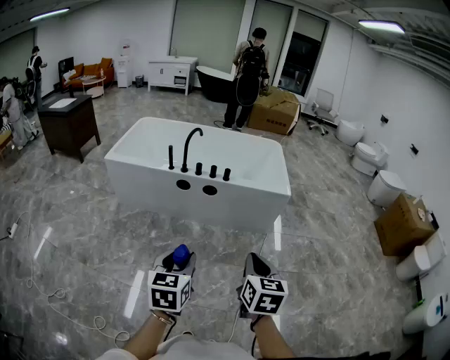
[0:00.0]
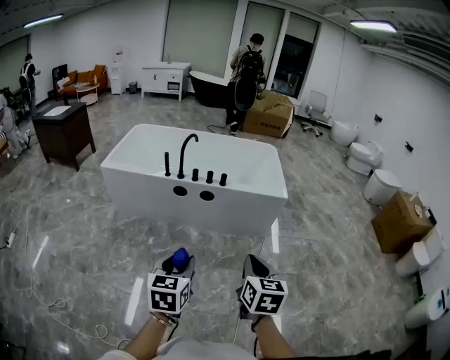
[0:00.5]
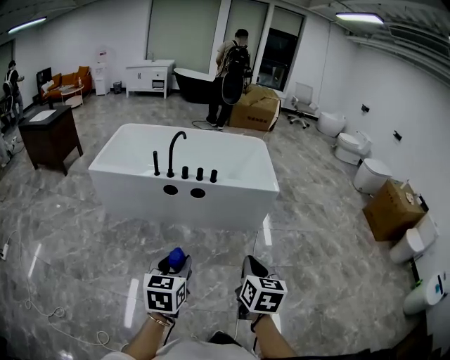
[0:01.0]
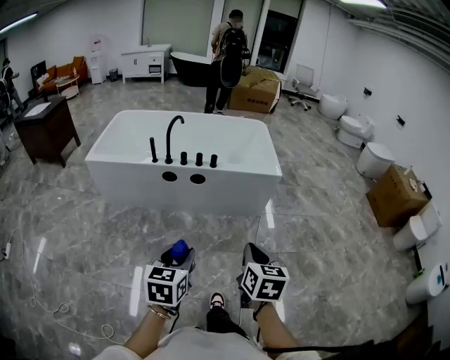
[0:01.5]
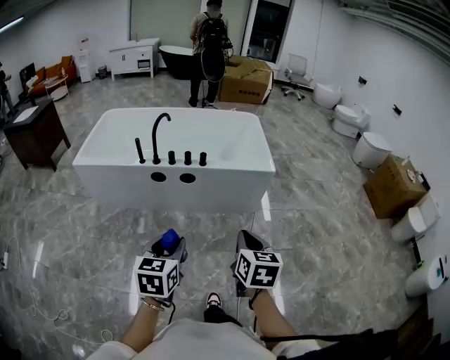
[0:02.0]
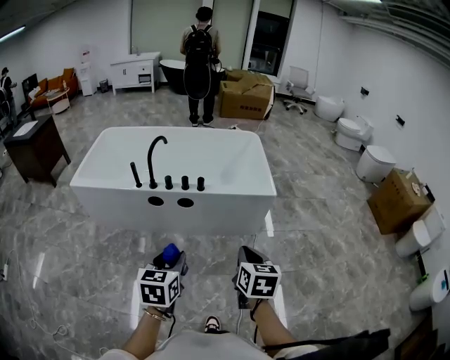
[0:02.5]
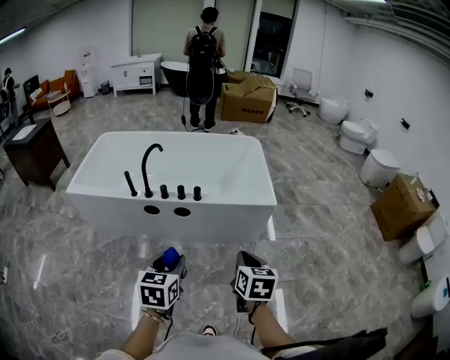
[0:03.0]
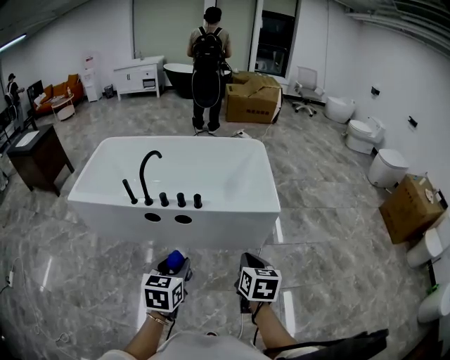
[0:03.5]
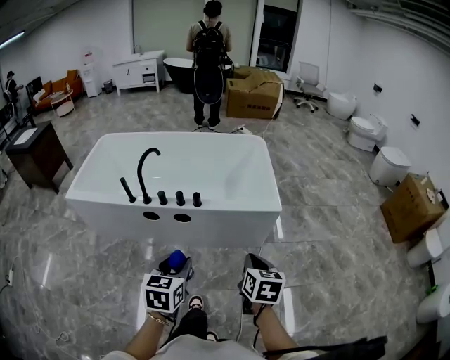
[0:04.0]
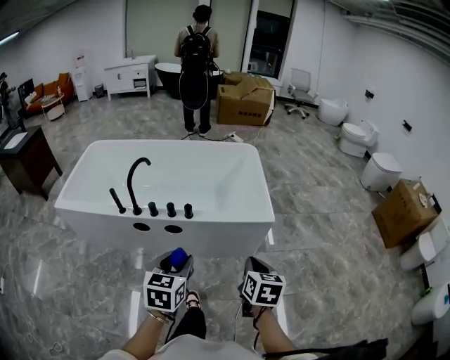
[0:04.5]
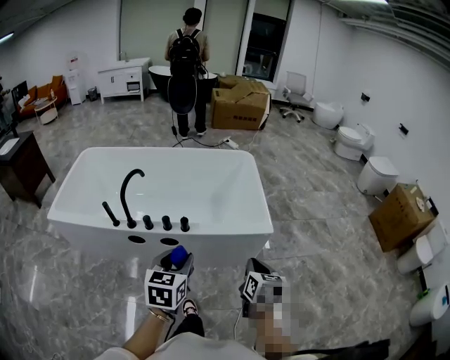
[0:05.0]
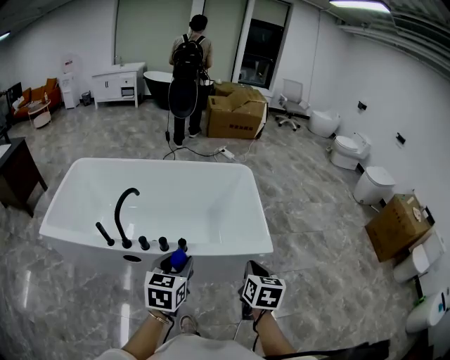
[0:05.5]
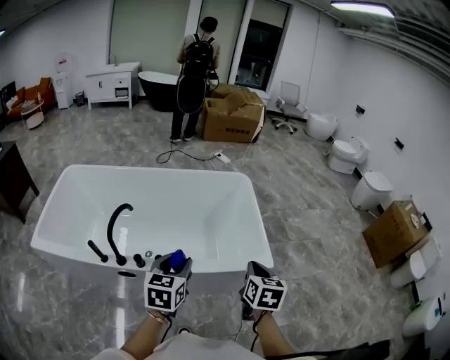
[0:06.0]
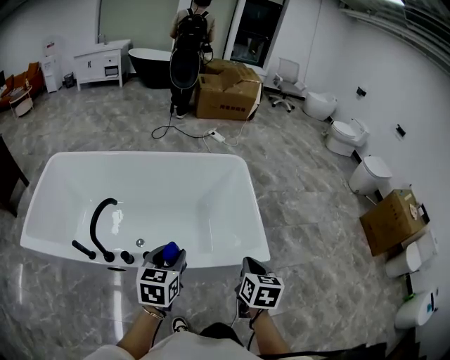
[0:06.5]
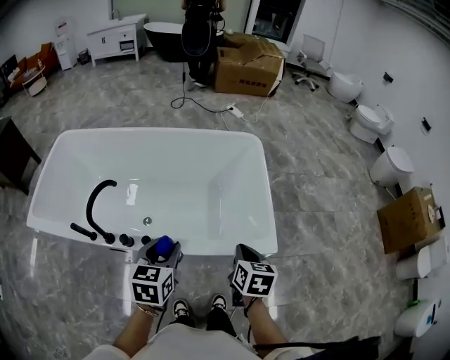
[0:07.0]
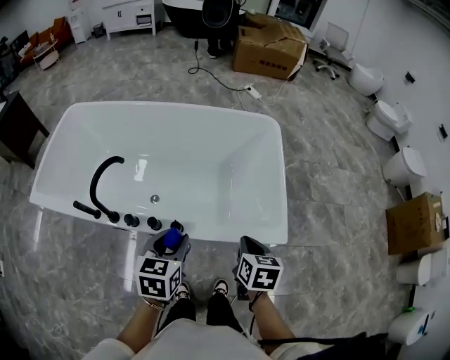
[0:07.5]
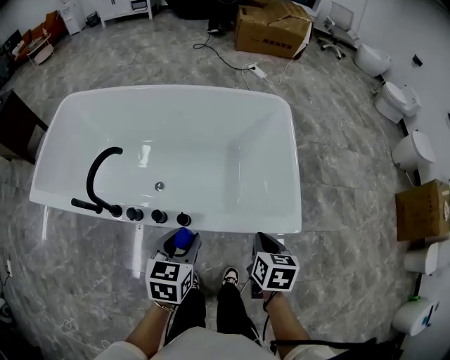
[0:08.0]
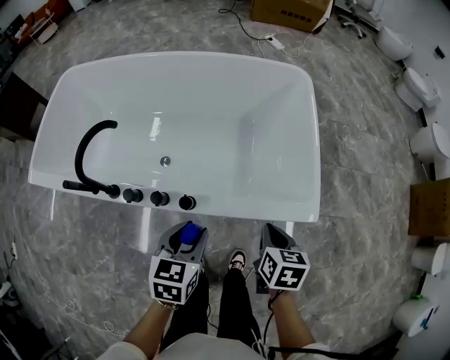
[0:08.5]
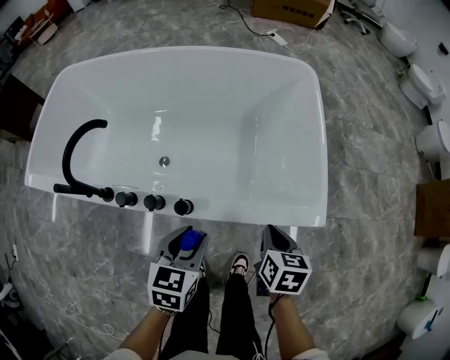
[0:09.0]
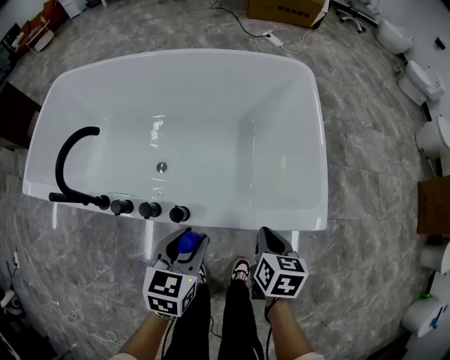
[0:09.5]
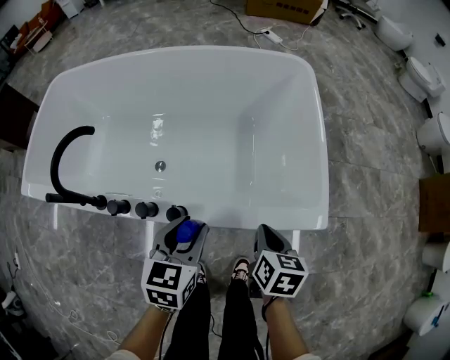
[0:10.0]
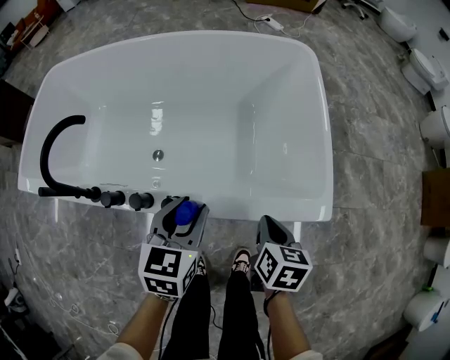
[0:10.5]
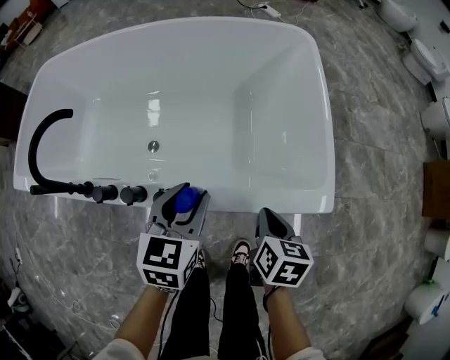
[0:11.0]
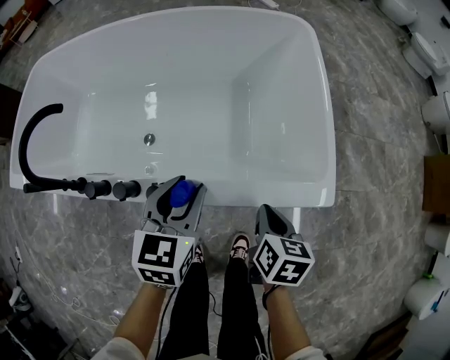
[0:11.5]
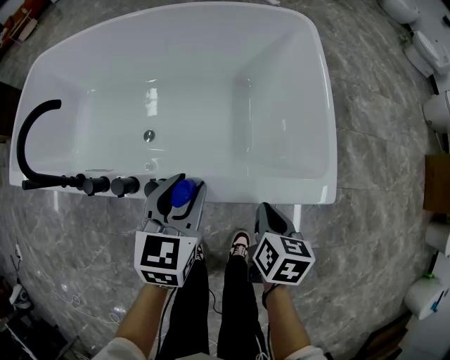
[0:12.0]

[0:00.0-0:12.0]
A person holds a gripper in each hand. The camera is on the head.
0:00.0 to 0:02.0: Both grippers move forward, approximately 10 cm.
0:02.0 to 0:04.0: The left gripper is displaced forward by some 20 cm, while the right gripper shifts about 20 cm forward and to the right.
0:04.0 to 0:06.0: The two grippers go roughly 25 cm forward.
0:06.0 to 0:08.0: The two grippers go about 10 cm downward. The right gripper swivels about 20 degrees.
0:08.0 to 0:10.0: Both grippers move downward, roughly 10 cm.
0:10.0 to 0:12.0: The grippers stay close to where they were, moving slightly.

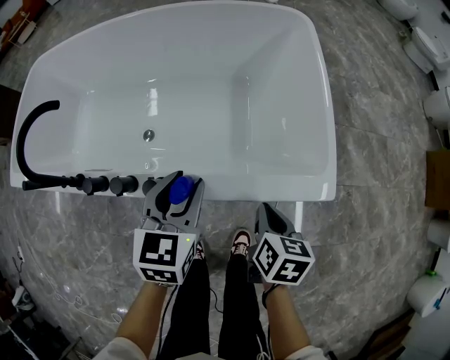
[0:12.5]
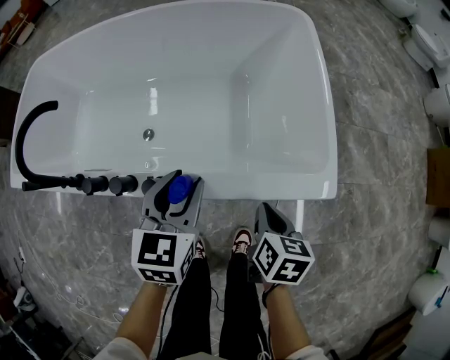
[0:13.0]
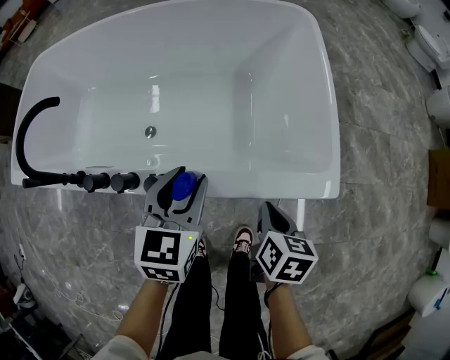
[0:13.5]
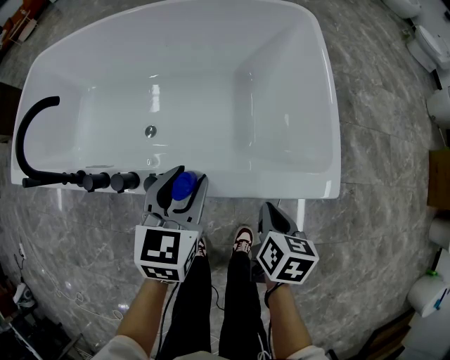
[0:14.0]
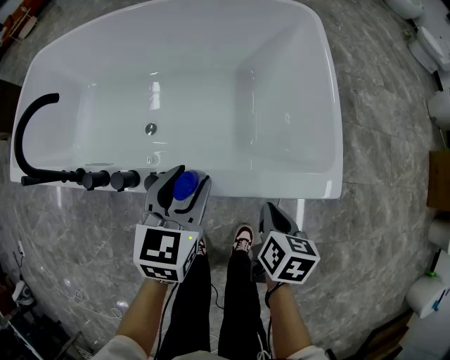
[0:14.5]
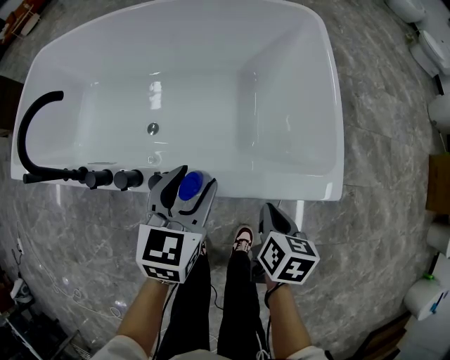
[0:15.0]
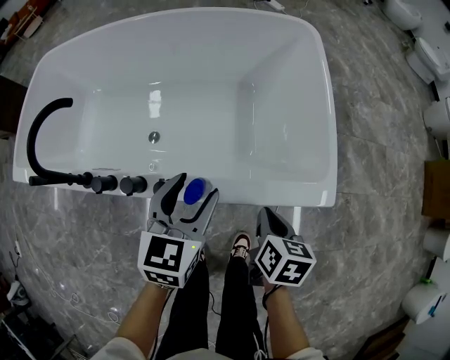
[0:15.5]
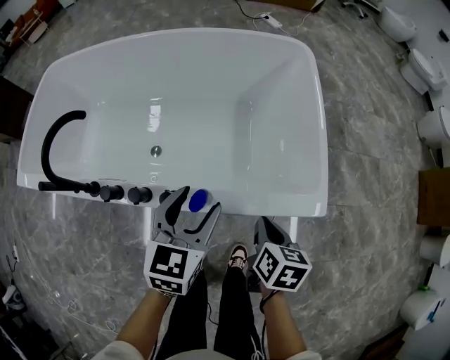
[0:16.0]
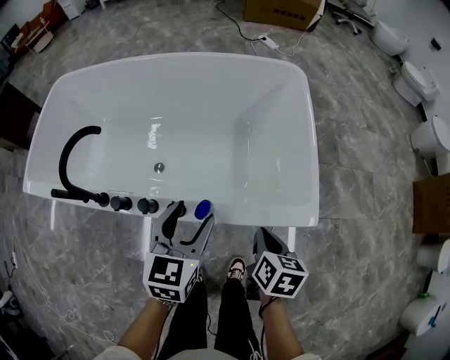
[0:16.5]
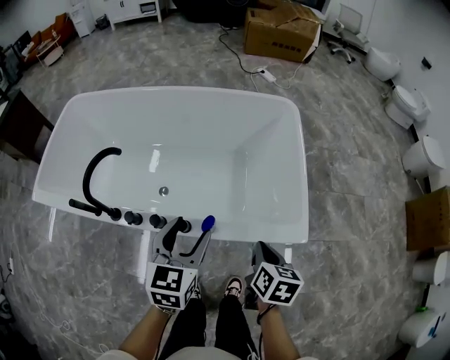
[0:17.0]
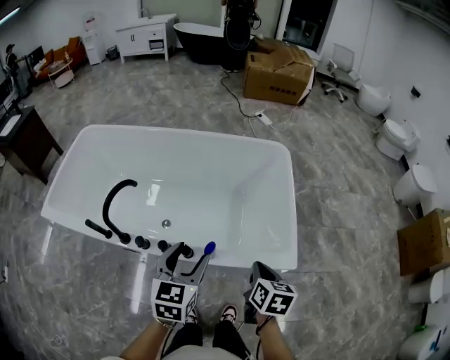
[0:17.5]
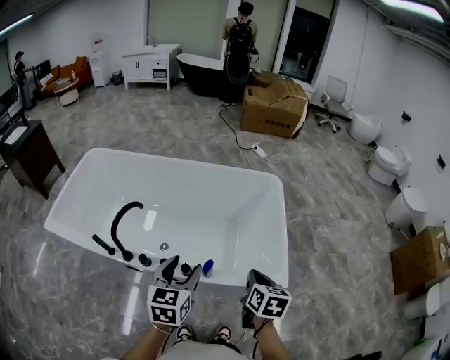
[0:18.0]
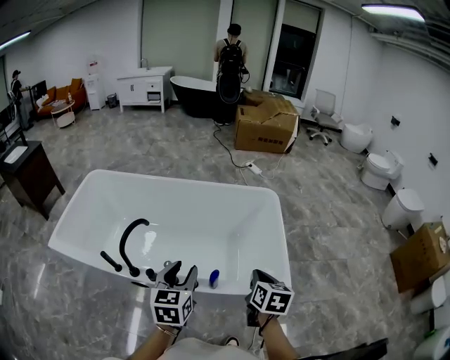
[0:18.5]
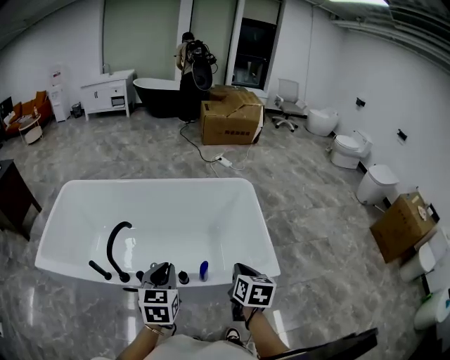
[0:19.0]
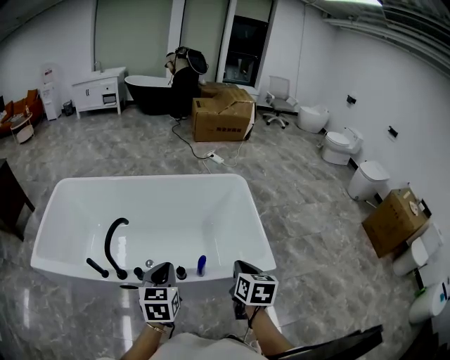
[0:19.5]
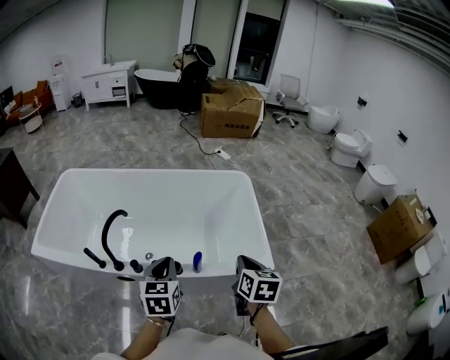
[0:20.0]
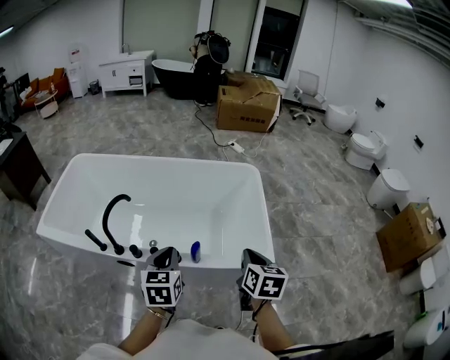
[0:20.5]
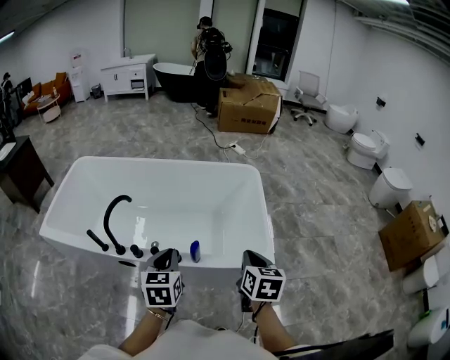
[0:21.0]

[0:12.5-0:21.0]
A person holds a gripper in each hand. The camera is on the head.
0:12.5 to 0:14.5: Both grippers stay put.
0:14.5 to 0:16.5: The grippers both shift upward by some 10 cm.
0:16.5 to 0:19.0: The right gripper travels upward by approximately 20 cm; the left gripper travels upward and to the left by roughly 15 cm, and closes up.
0:19.0 to 0:21.0: The right gripper is displaced to the right by approximately 5 cm. The left gripper ends up approximately 5 cm from where it was.

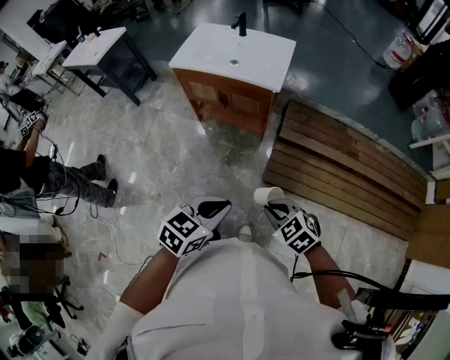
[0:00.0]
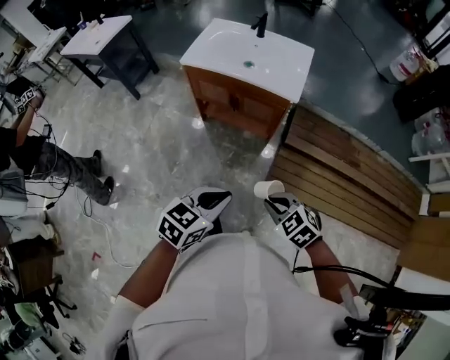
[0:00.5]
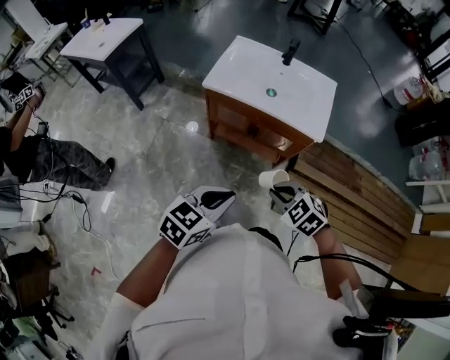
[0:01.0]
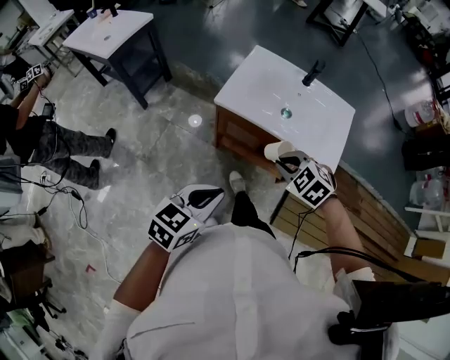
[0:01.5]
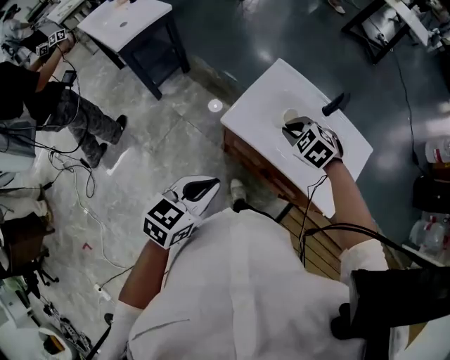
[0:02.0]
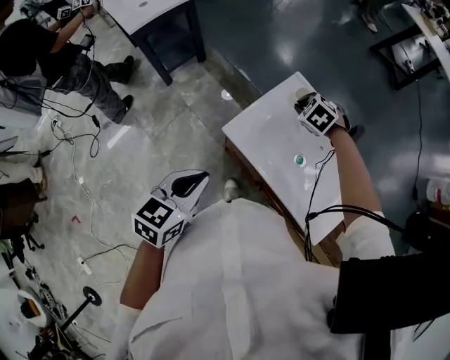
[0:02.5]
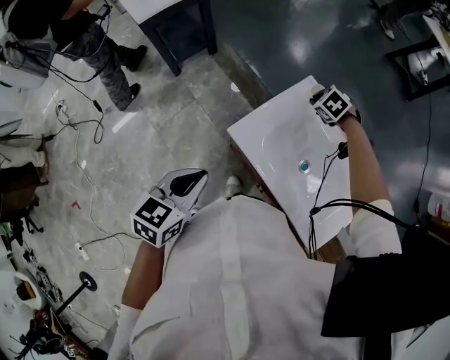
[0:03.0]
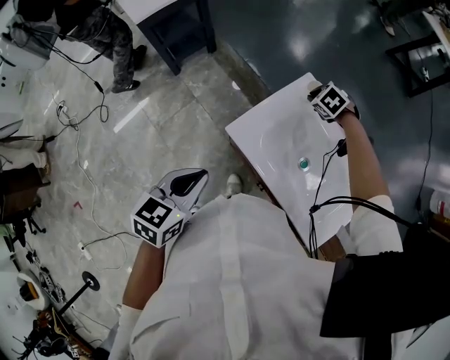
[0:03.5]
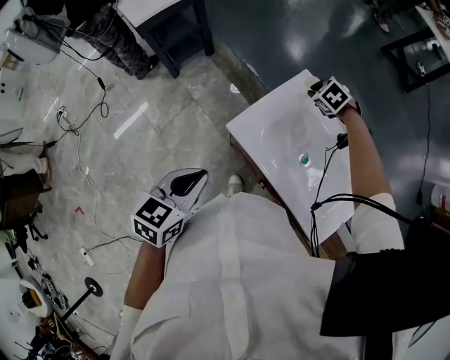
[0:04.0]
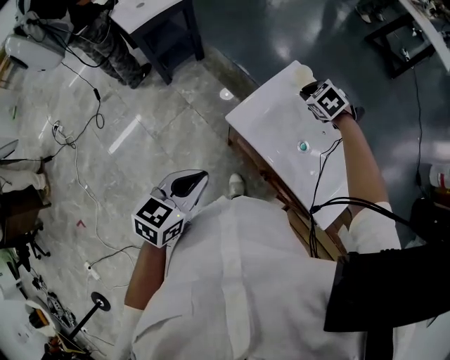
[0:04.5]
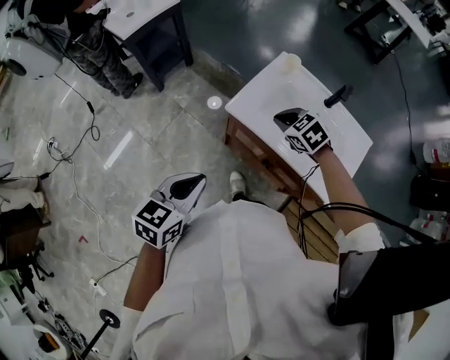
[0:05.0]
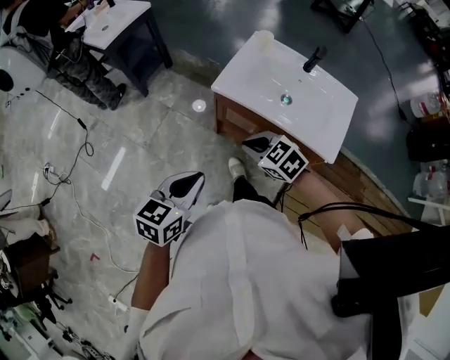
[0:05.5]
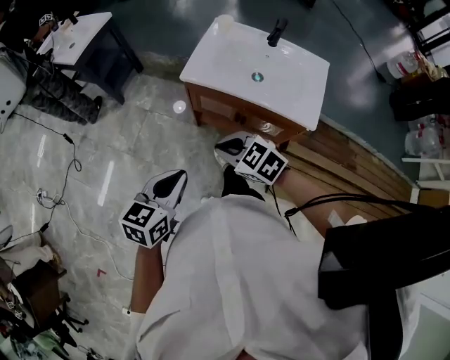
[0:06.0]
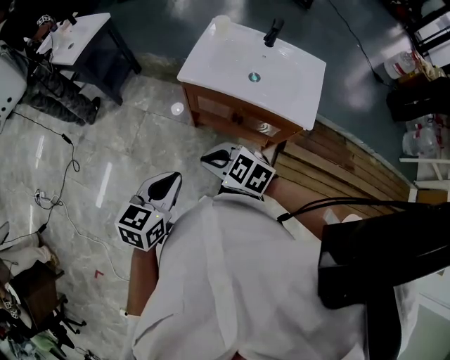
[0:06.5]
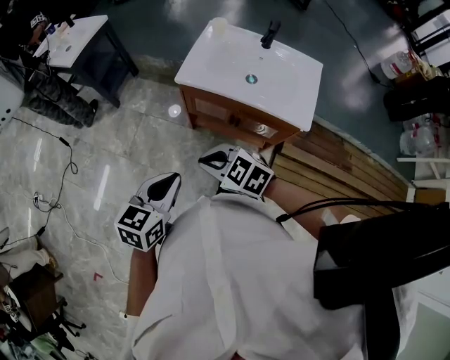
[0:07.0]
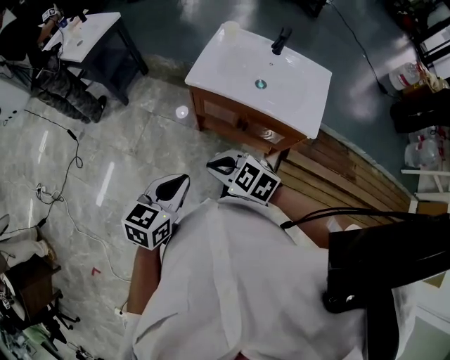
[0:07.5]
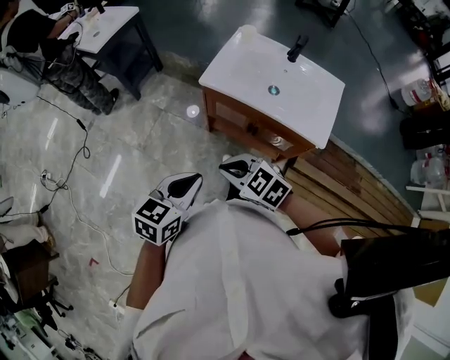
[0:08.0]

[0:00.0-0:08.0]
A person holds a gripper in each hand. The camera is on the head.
0:00.0 to 0:02.0: Both grippers are carried forward, approximately 70 cm. The right gripper swivels approximately 30 degrees; the left gripper swivels about 20 degrees.
0:02.0 to 0:04.0: The right gripper travels forward by about 25 cm. The left gripper is displaced forward by some 5 cm.
0:04.0 to 0:06.0: The right gripper is displaced backward by roughly 50 cm, and changes its angle by about 40 degrees; the left gripper travels backward by approximately 25 cm, and rotates about 20 degrees.
0:06.0 to 0:08.0: The right gripper moves approximately 5 cm.
